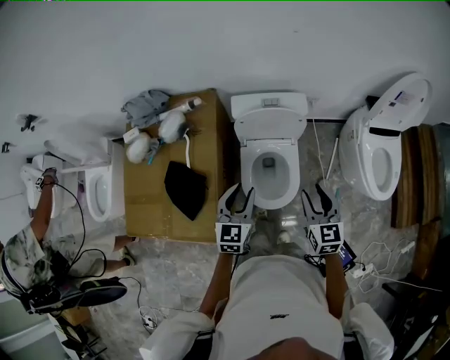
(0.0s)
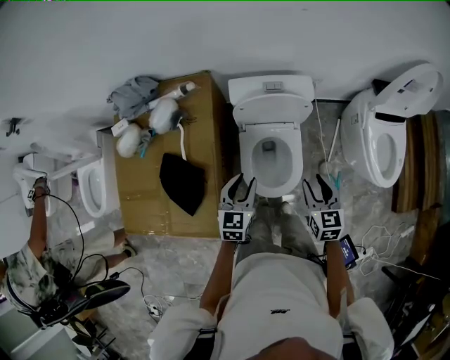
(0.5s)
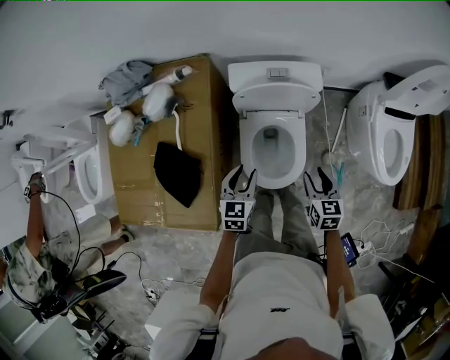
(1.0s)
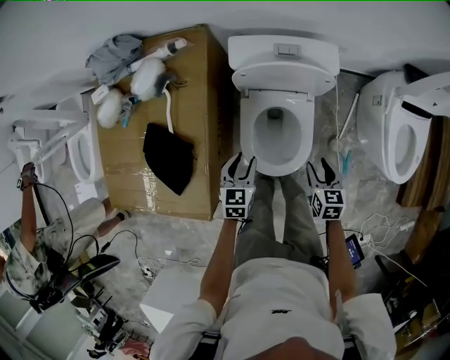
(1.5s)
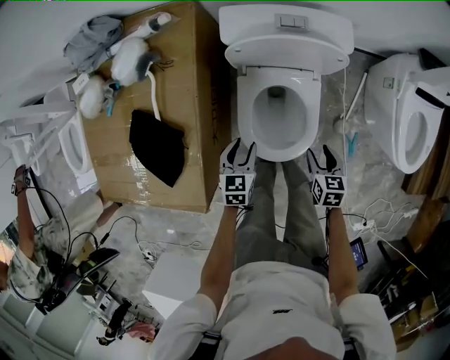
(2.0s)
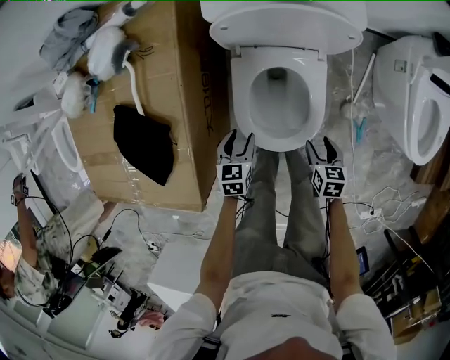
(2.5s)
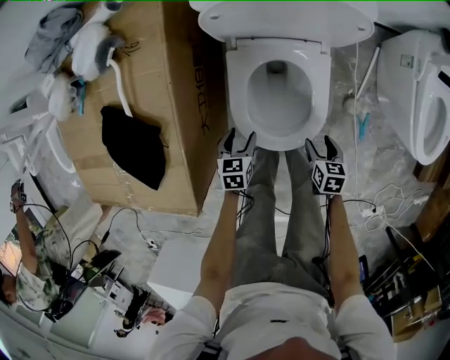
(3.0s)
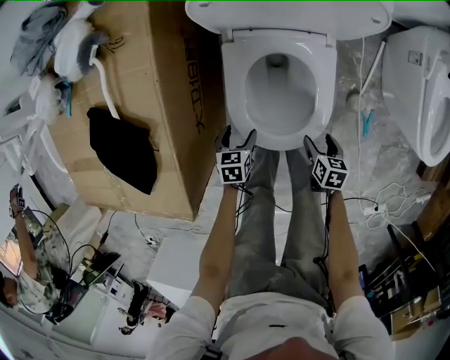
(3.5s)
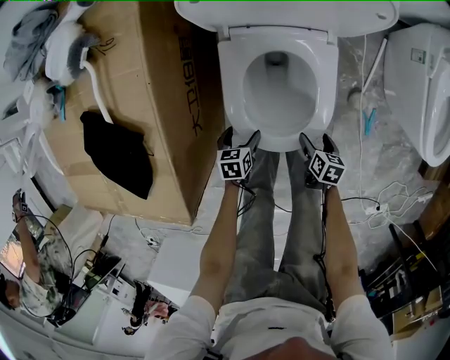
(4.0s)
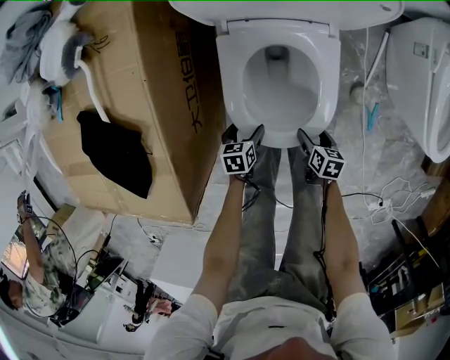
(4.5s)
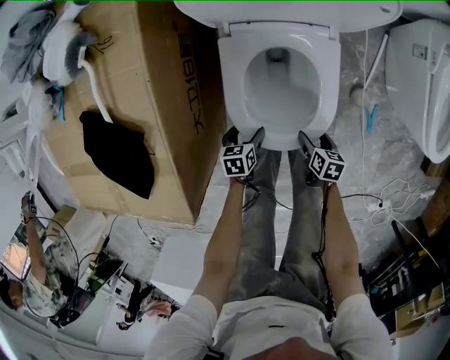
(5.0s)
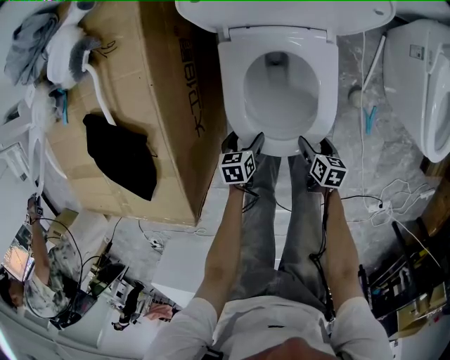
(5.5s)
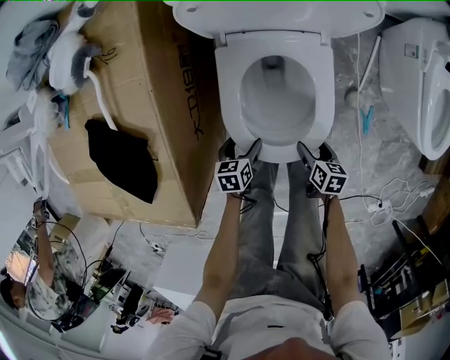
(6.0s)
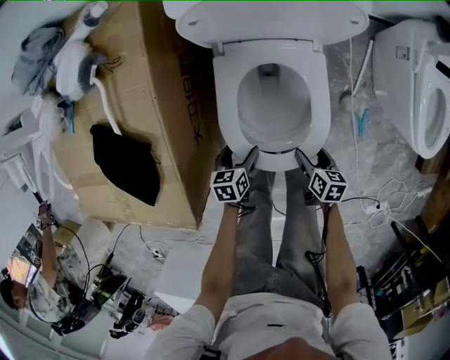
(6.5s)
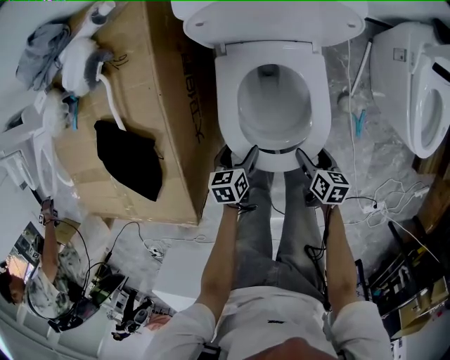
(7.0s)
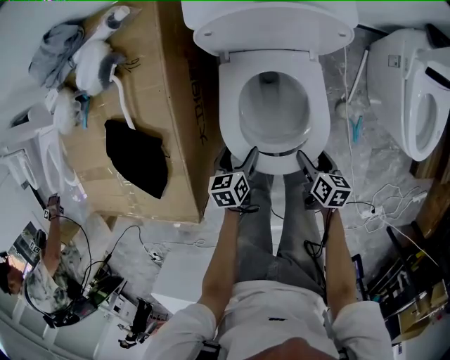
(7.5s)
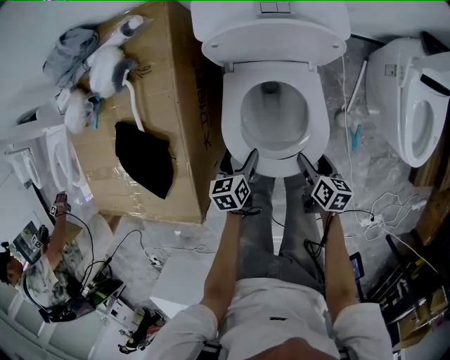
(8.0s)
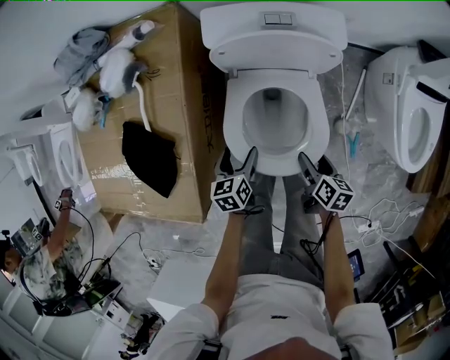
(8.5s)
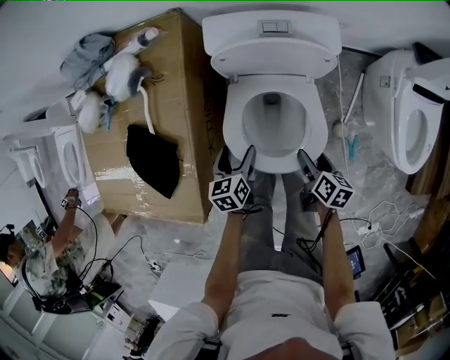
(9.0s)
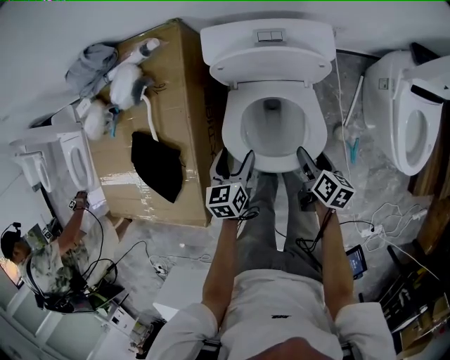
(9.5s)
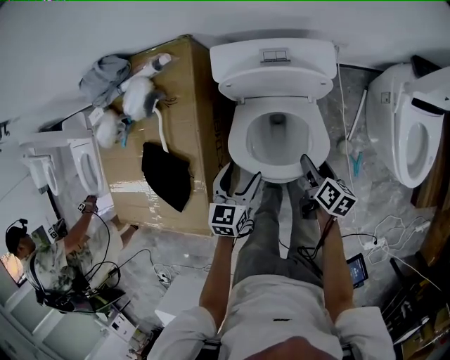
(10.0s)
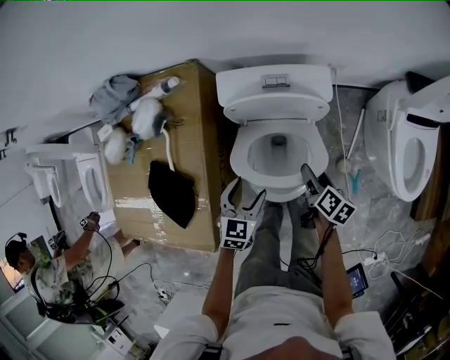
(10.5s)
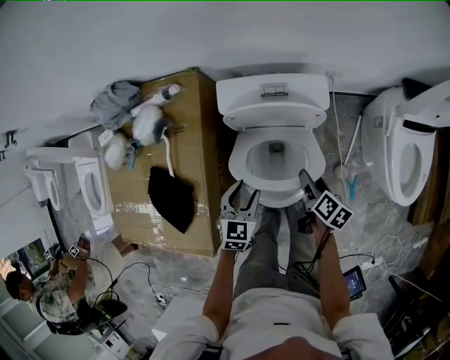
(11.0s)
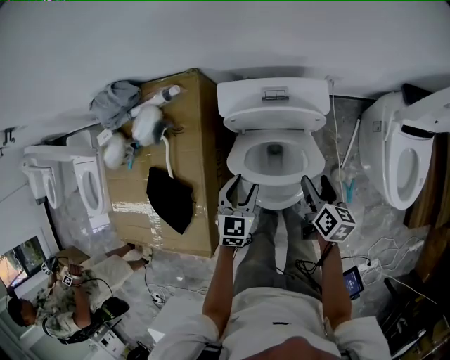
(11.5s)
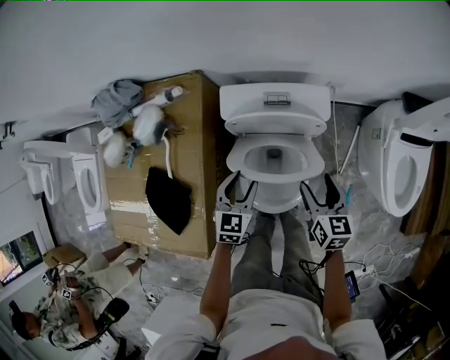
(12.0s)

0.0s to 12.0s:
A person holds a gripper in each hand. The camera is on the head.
0.0s to 2.0s: Both grippers move downward, roughly 35 cm. The right gripper swivels approximately 30 degrees; the left gripper turns by about 30 degrees.
2.0s to 4.0s: Both grippers move downward, some 25 cm. The left gripper turns by approximately 30 degrees, and opens, while the right gripper changes its angle by about 30 degrees, and opens.
4.0s to 6.0s: The right gripper ends up approximately 5 cm from where it was.
6.0s to 8.0s: The grippers both shift upward by approximately 15 cm.
8.0s to 10.0s: The left gripper is displaced upward and forward by approximately 15 cm, and swivels roughly 30 degrees. Meanwhile the right gripper is displaced forward and upward by approximately 15 cm.
10.0s to 12.0s: The left gripper goes roughly 10 cm forward, and closes; the right gripper is displaced upward and forward by approximately 15 cm, and changes its angle by roughly 40 degrees.

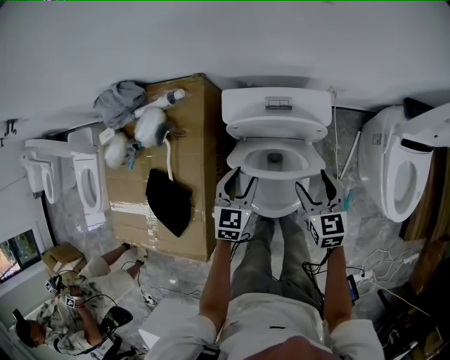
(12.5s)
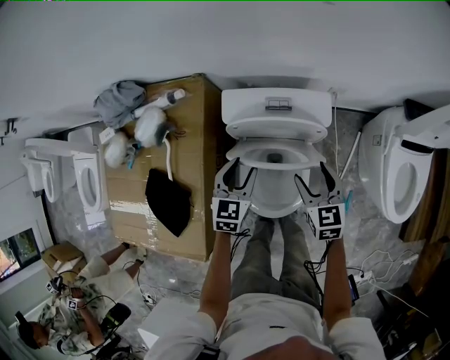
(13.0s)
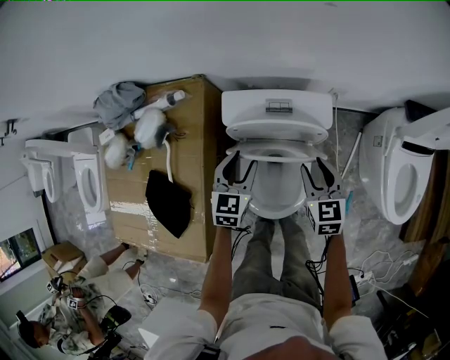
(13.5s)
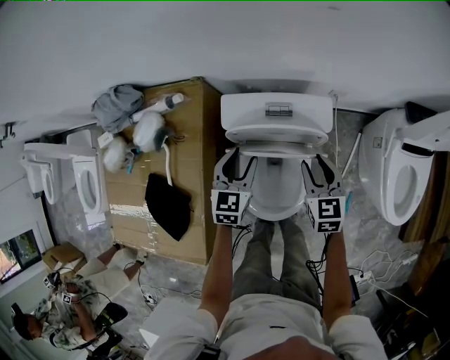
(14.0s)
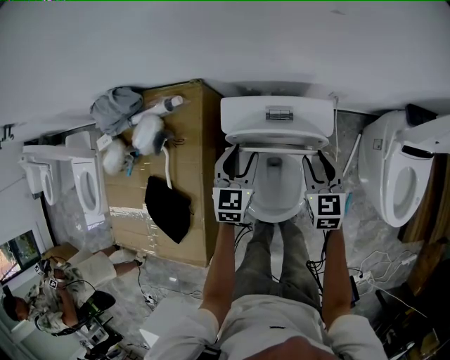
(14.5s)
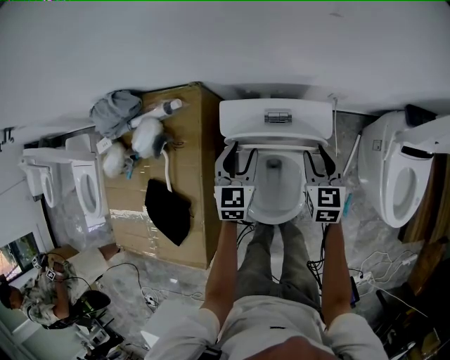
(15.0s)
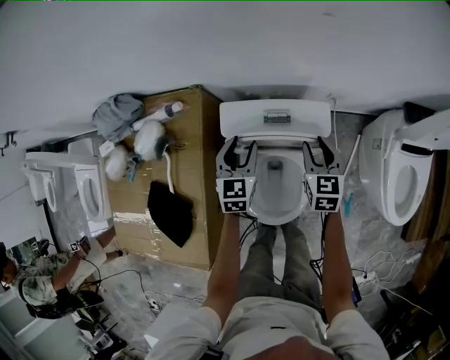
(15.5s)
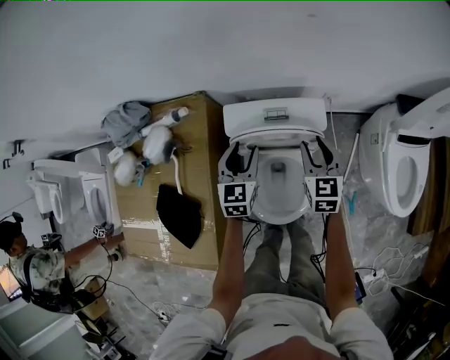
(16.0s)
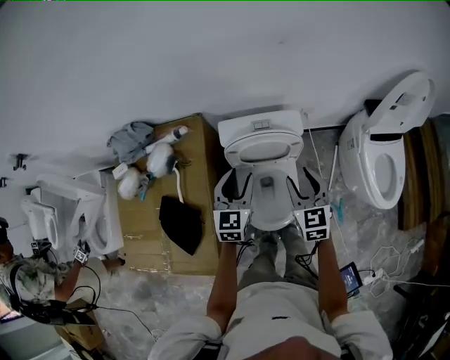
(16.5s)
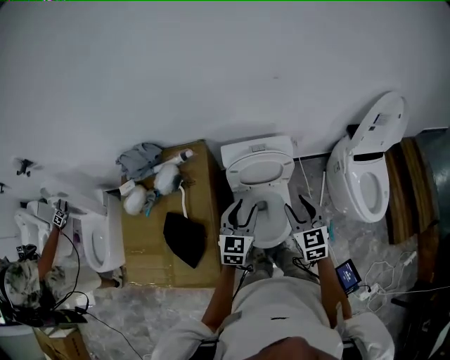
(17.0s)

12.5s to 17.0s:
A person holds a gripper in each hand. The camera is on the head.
12.5s to 14.5s: Both grippers travel together forward, about 10 cm. The right gripper closes its fingers.
14.5s to 17.0s: The two grippers go about 30 cm upward and backward.

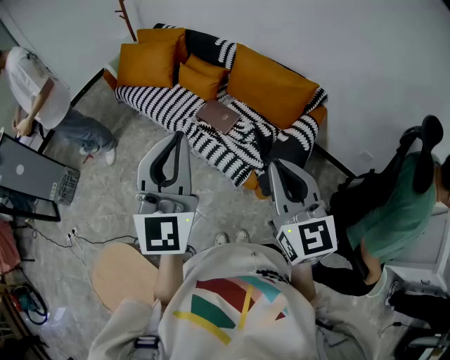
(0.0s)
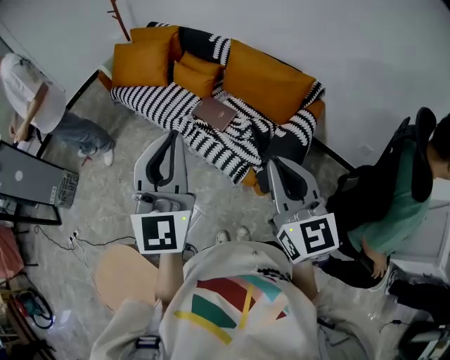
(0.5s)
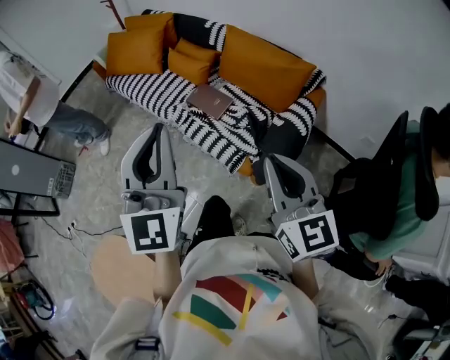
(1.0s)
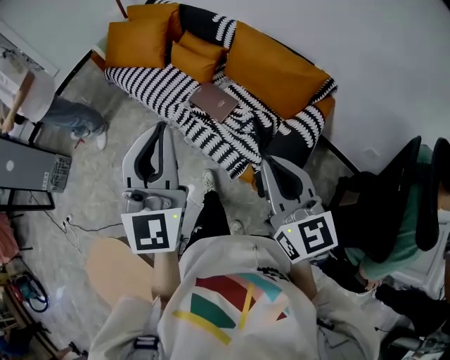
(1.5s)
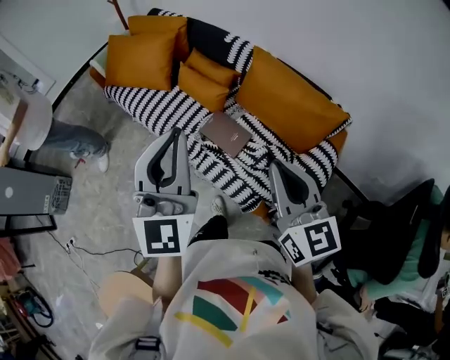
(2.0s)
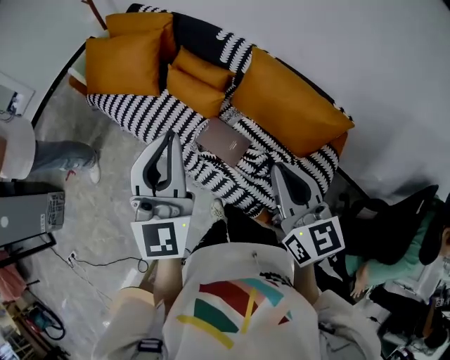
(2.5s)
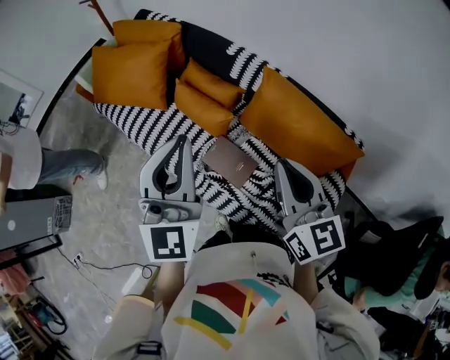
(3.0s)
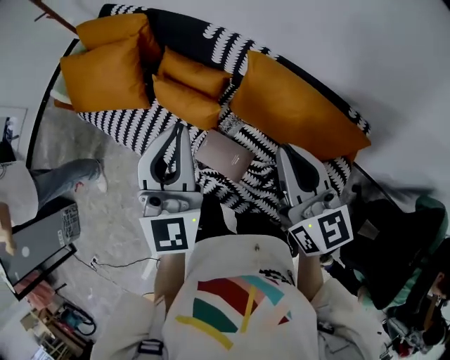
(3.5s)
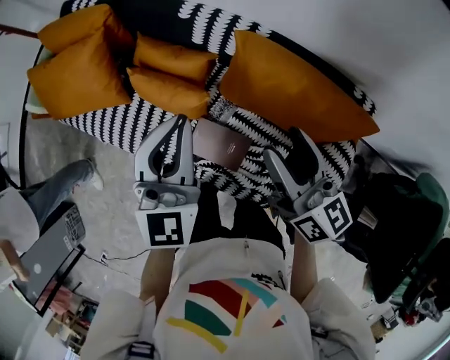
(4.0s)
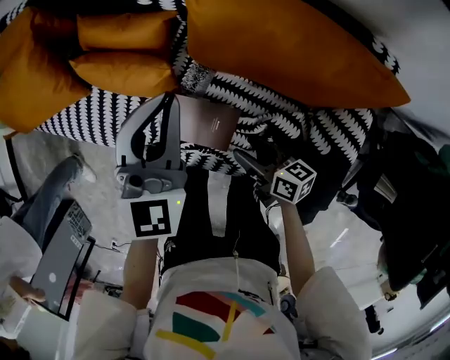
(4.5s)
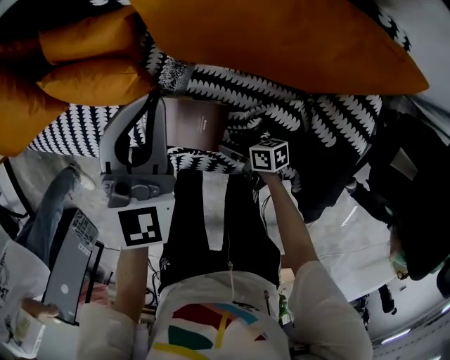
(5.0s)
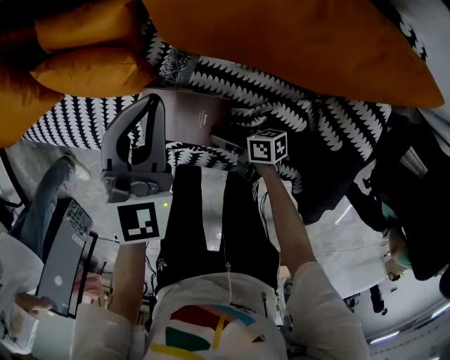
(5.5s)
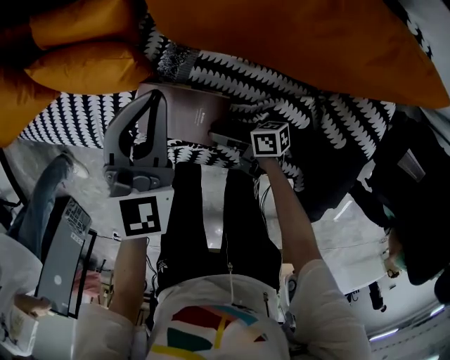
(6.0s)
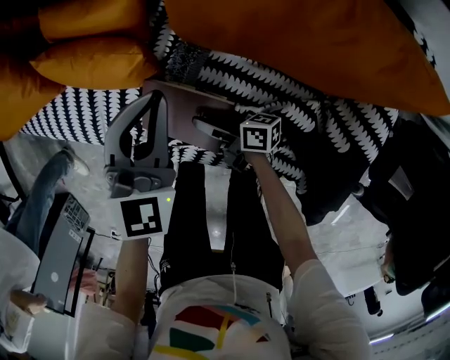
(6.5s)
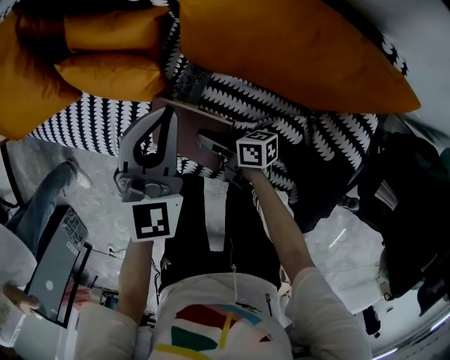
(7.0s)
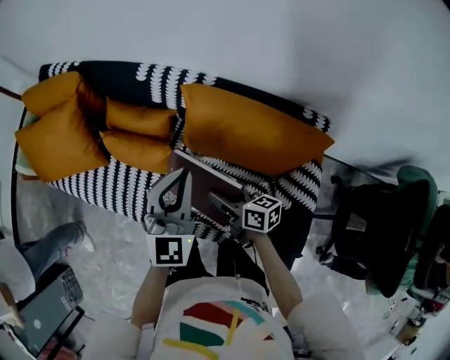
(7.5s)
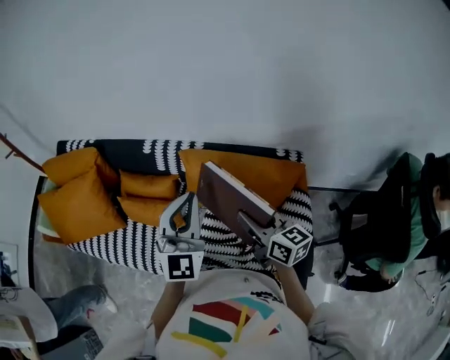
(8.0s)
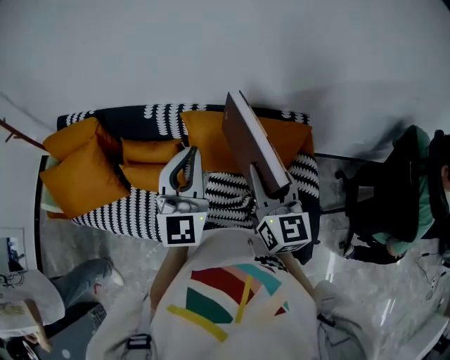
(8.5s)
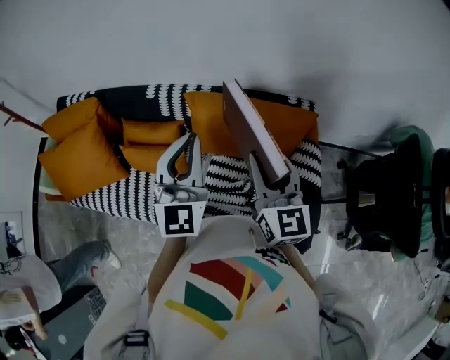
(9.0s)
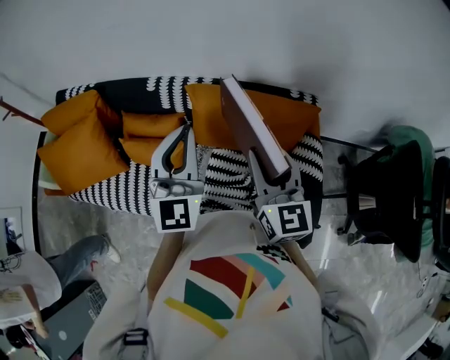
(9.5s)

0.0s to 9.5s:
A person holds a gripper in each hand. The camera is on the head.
0.0s to 2.0s: The grippers both shift forward by approximately 25 cm.
2.0s to 4.0s: The grippers both shift forward by approximately 35 cm. The right gripper swivels about 30 degrees, and opens. Meanwhile the left gripper rotates roughly 20 degrees.
4.0s to 5.5s: The right gripper travels downward by approximately 50 cm, and turns by approximately 60 degrees, while the left gripper is displaced downward by some 25 cm, and rotates approximately 20 degrees.
5.5s to 7.5s: The left gripper heads upward, covering some 20 cm. Meanwhile the right gripper heads upward, covering approximately 30 cm, turns by approximately 30 degrees, and closes.
7.5s to 9.5s: The right gripper heads upward, covering approximately 25 cm, and changes its angle by about 60 degrees, while the left gripper is displaced upward by about 15 cm.
